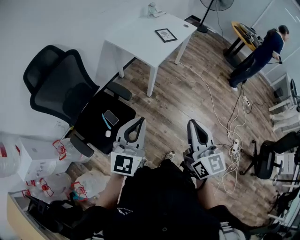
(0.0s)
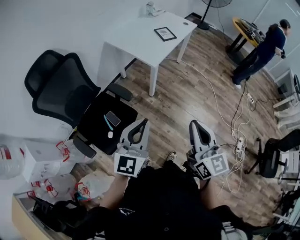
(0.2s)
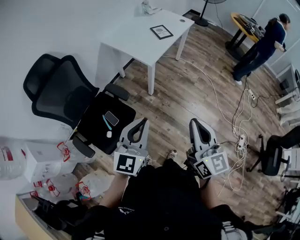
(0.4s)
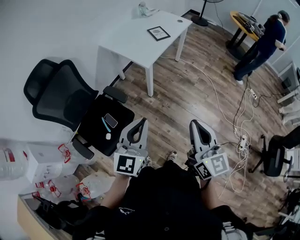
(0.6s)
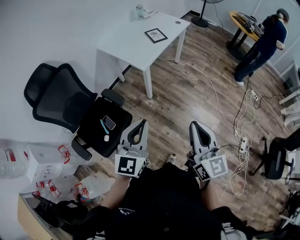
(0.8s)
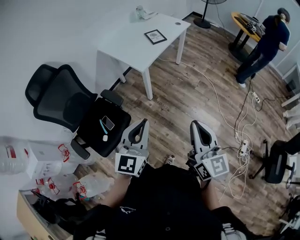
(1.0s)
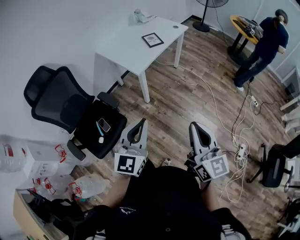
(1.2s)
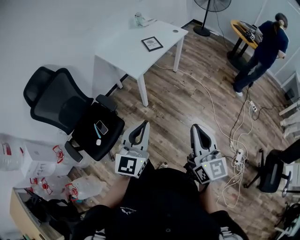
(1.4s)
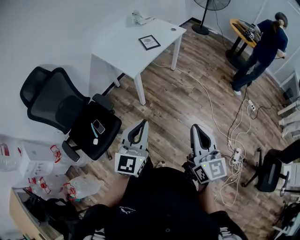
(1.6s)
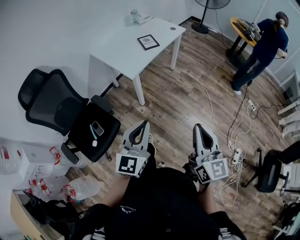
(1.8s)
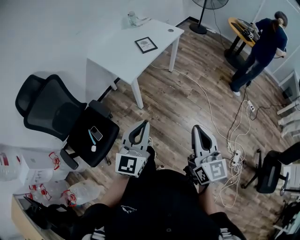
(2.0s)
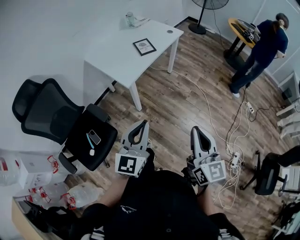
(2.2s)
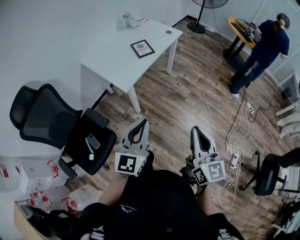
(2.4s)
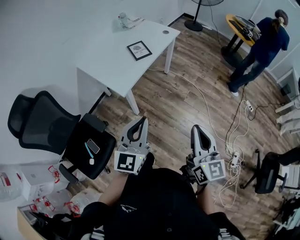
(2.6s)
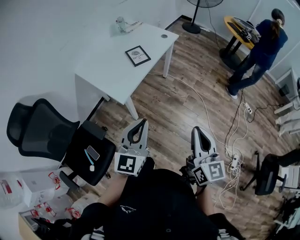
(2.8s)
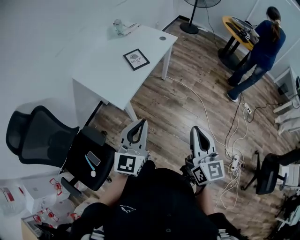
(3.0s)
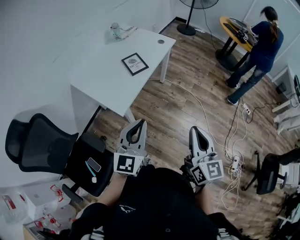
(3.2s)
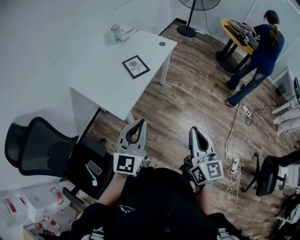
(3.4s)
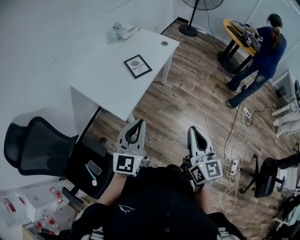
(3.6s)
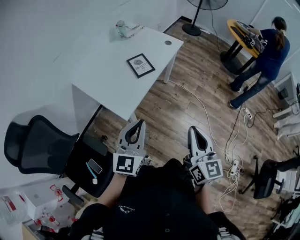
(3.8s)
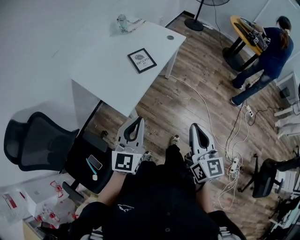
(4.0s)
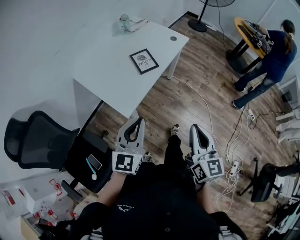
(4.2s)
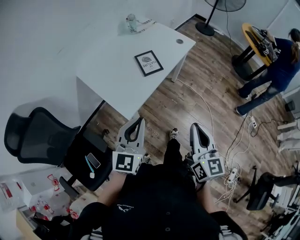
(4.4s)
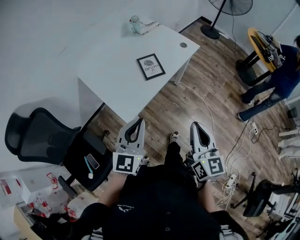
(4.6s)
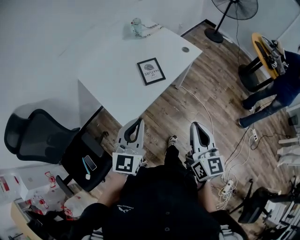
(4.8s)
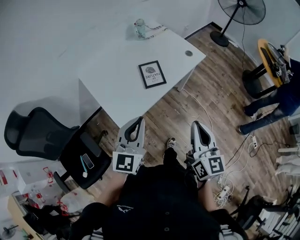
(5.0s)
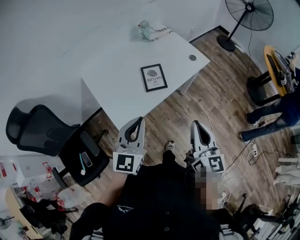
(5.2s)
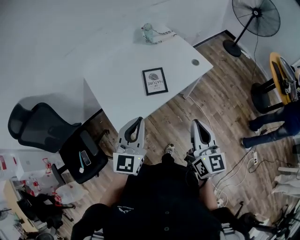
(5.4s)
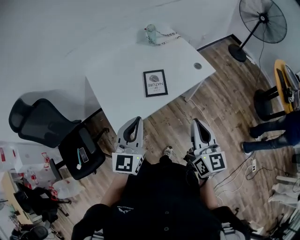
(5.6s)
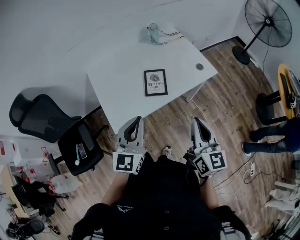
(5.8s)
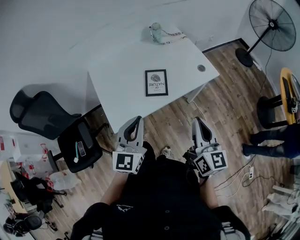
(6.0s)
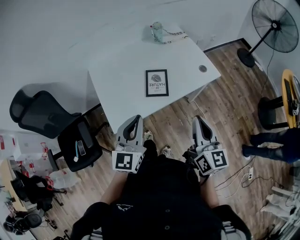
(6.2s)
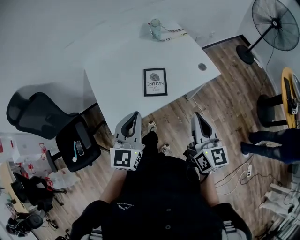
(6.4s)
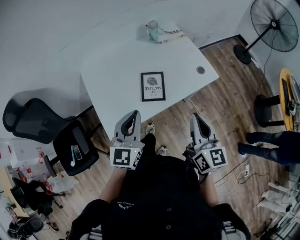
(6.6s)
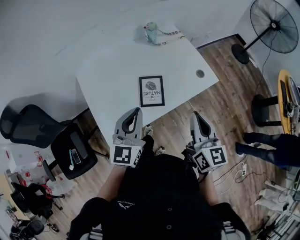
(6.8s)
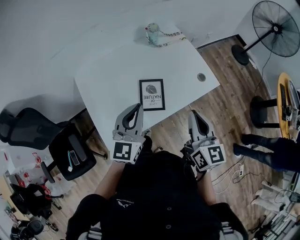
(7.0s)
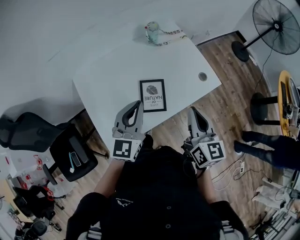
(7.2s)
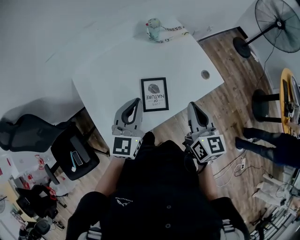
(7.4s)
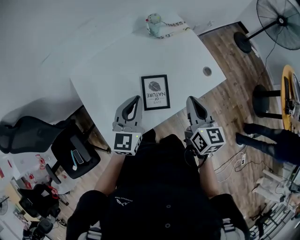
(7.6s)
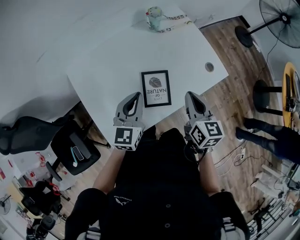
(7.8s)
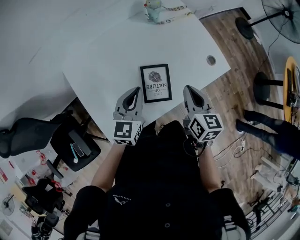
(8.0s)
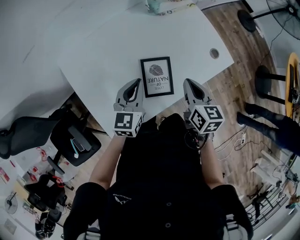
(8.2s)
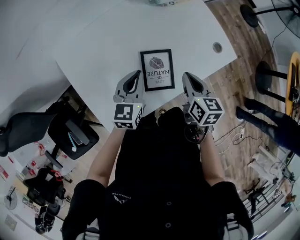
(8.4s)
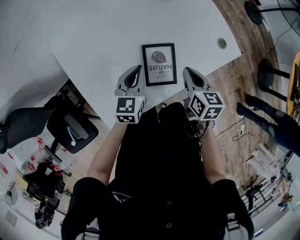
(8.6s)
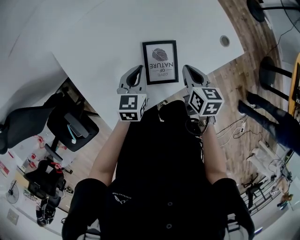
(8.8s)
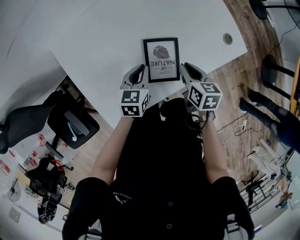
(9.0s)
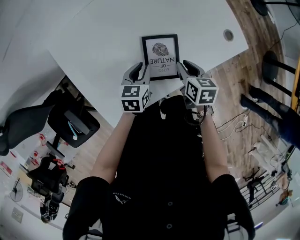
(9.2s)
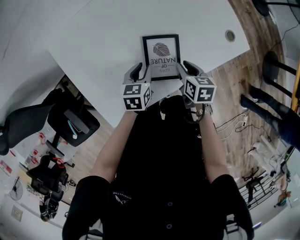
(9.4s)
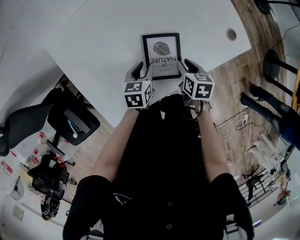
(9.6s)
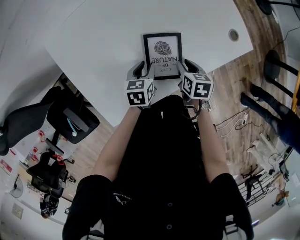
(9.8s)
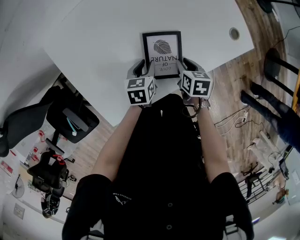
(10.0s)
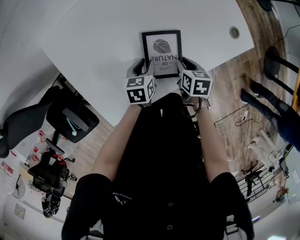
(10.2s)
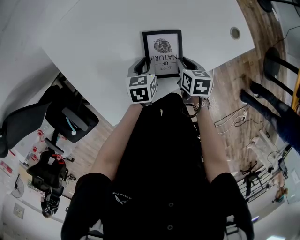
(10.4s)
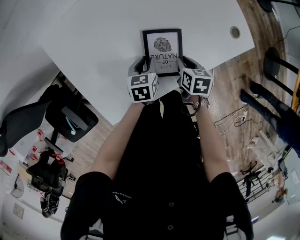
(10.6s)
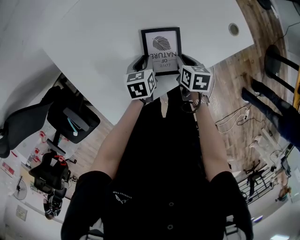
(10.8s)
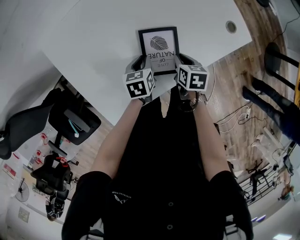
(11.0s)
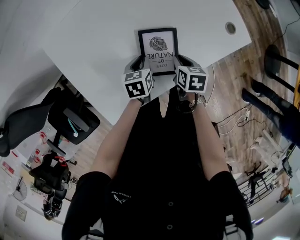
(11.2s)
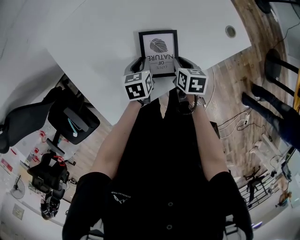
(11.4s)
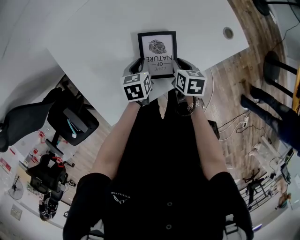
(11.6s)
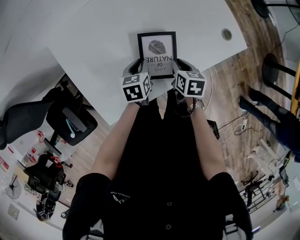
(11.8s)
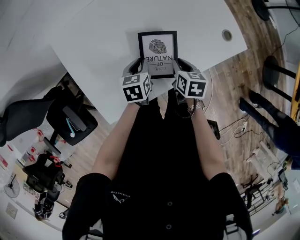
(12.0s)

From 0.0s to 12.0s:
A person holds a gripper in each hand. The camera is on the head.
From 0.0s to 1.6s: The grippers both shift to the right by roughly 25 cm.
From 1.6s to 3.0s: The grippers both shift forward by some 30 cm.
From 3.0s to 4.4s: The left gripper moves forward and to the left, approximately 15 cm; the right gripper goes roughly 15 cm forward.
From 4.4s to 6.0s: The grippers both shift forward and to the right by about 25 cm. The right gripper rotates some 20 degrees; the left gripper swivels about 30 degrees.
From 6.0s to 7.6s: Both grippers travel together forward, some 25 cm.
From 7.6s to 9.0s: The two grippers go about 25 cm downward. The left gripper rotates approximately 30 degrees. The right gripper rotates about 30 degrees.
From 9.0s to 10.4s: Both grippers travel together downward, roughly 10 cm. The left gripper opens.
From 10.4s to 12.0s: The grippers move only a little.

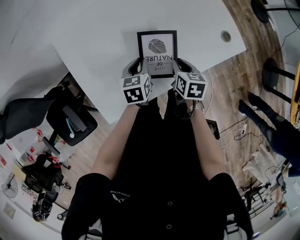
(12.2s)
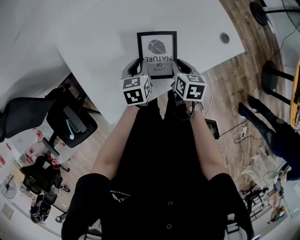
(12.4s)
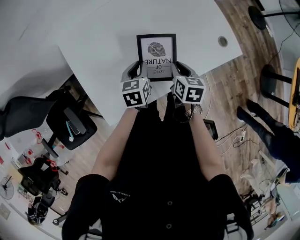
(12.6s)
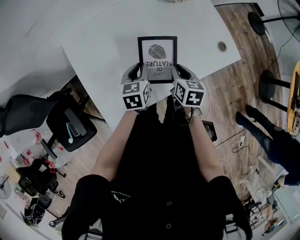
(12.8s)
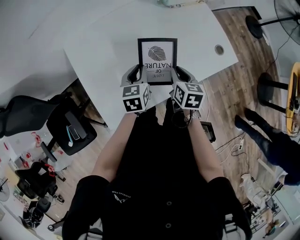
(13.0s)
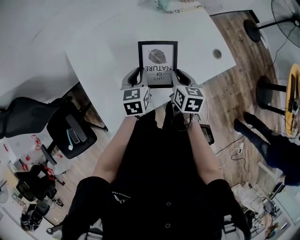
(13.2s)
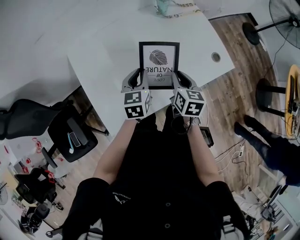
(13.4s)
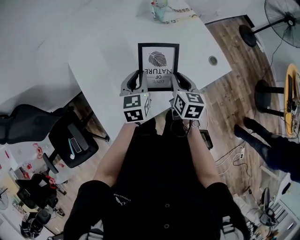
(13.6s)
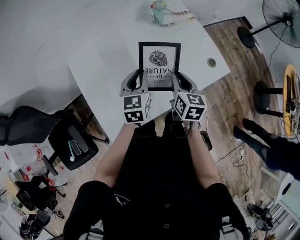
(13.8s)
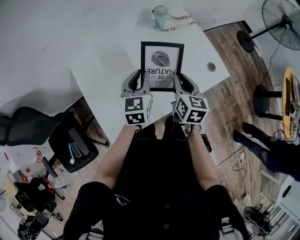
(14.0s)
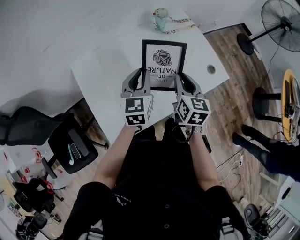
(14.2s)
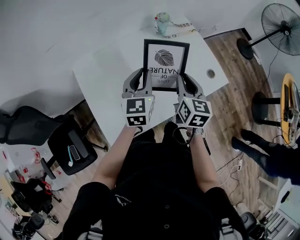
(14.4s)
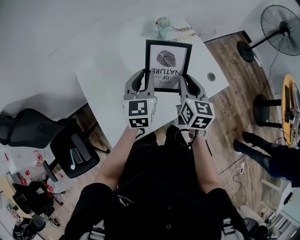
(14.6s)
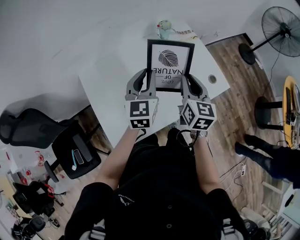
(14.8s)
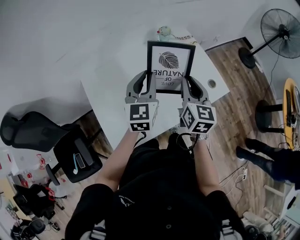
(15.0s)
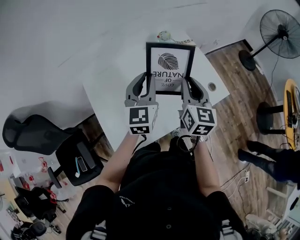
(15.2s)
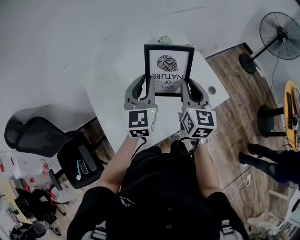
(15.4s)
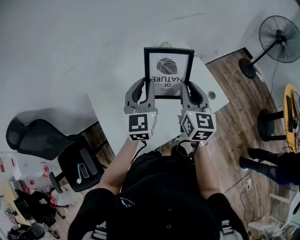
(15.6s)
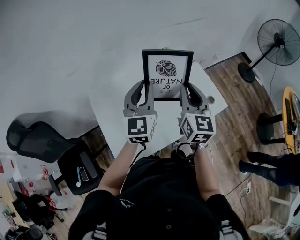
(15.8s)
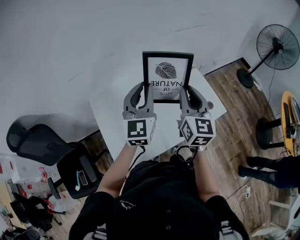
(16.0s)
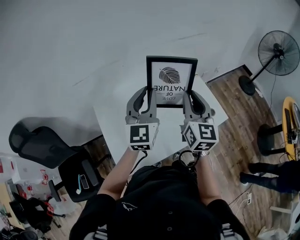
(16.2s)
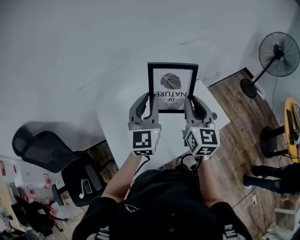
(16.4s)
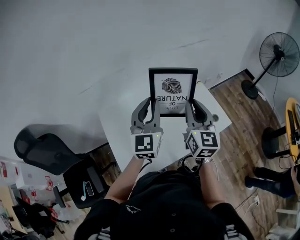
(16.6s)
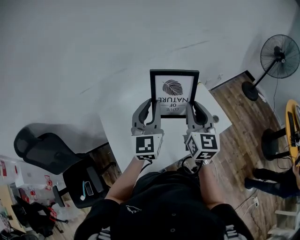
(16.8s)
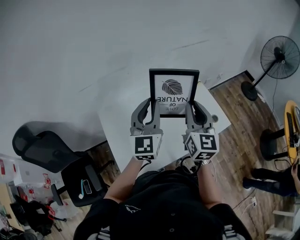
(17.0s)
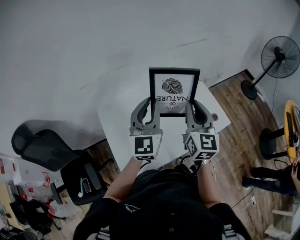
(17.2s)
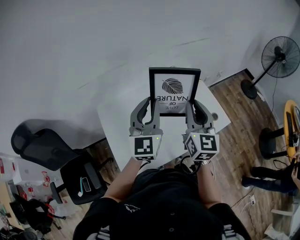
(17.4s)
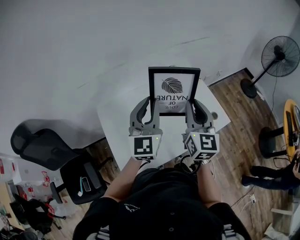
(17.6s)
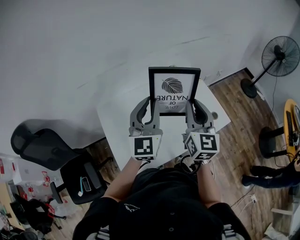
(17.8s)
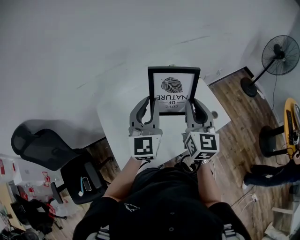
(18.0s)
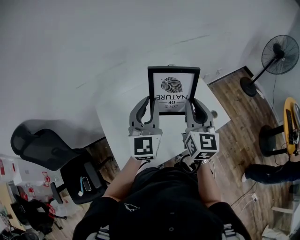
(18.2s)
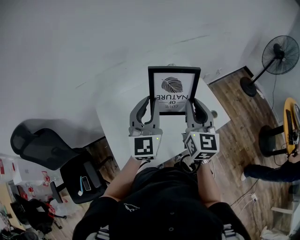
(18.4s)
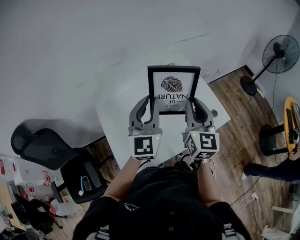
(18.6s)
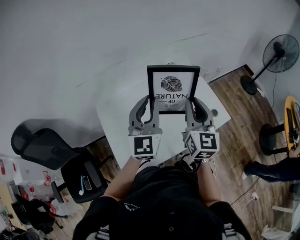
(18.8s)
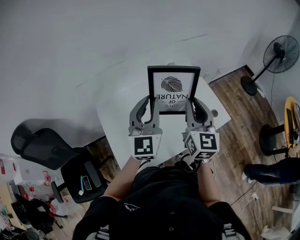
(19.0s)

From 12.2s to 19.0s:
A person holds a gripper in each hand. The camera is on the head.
From 12.2s to 13.6s: Both grippers travel together upward, about 15 cm. The left gripper swivels approximately 20 degrees.
From 13.6s to 15.0s: Both grippers move upward, about 15 cm. The right gripper turns by approximately 20 degrees; the left gripper turns by roughly 20 degrees.
From 15.0s to 16.2s: Both grippers travel together upward, roughly 10 cm.
From 16.2s to 17.6s: The grippers move only a little.
From 17.6s to 19.0s: Both grippers stay about where they are.

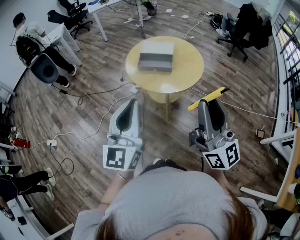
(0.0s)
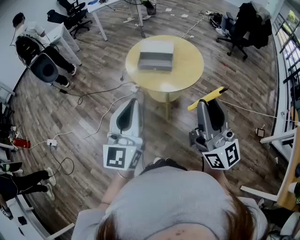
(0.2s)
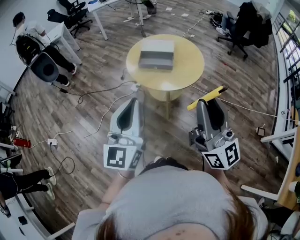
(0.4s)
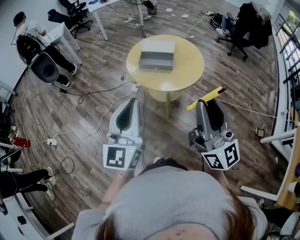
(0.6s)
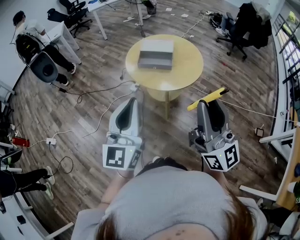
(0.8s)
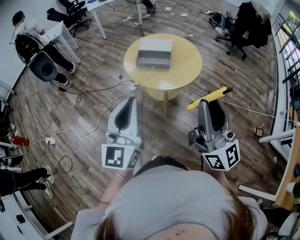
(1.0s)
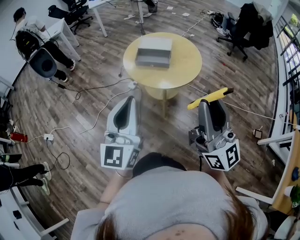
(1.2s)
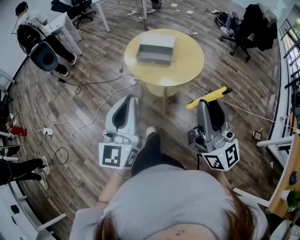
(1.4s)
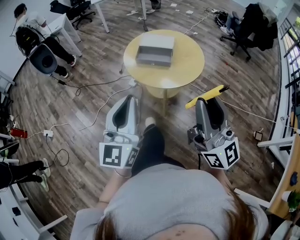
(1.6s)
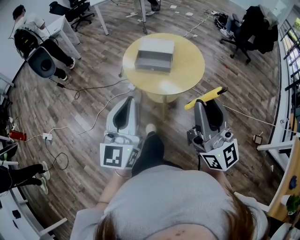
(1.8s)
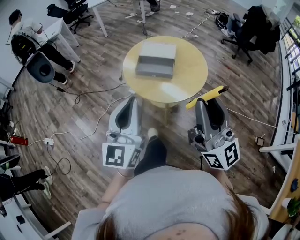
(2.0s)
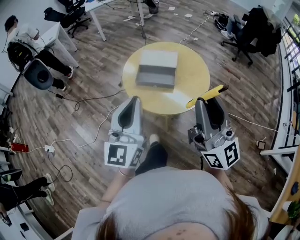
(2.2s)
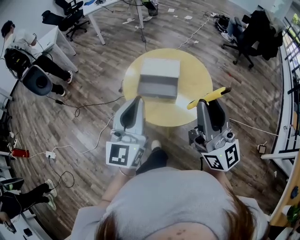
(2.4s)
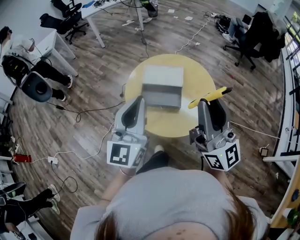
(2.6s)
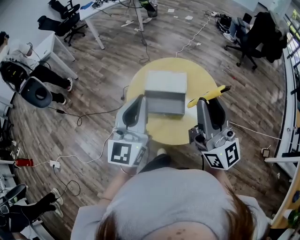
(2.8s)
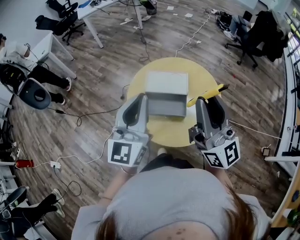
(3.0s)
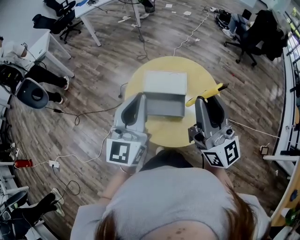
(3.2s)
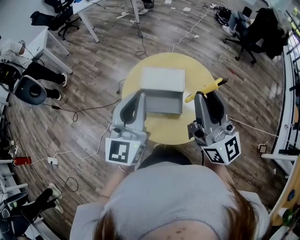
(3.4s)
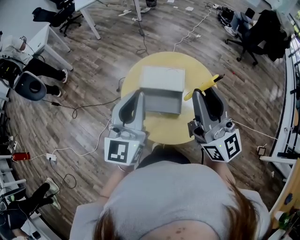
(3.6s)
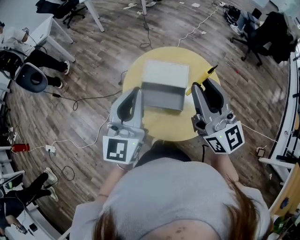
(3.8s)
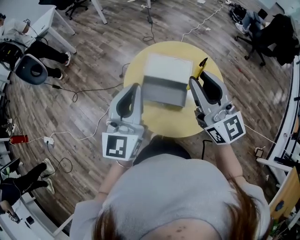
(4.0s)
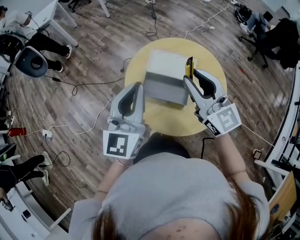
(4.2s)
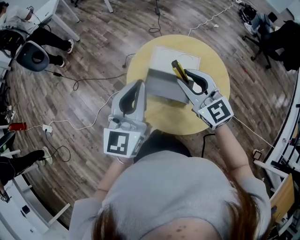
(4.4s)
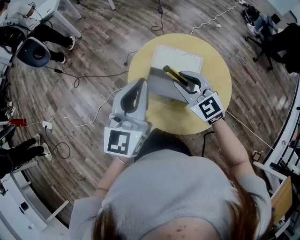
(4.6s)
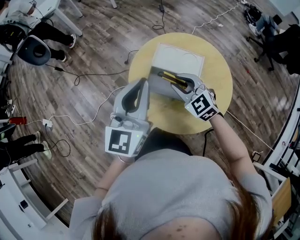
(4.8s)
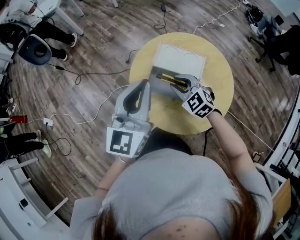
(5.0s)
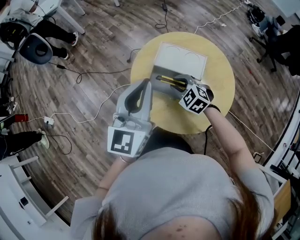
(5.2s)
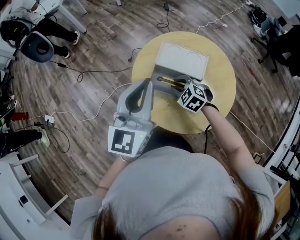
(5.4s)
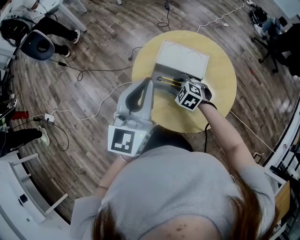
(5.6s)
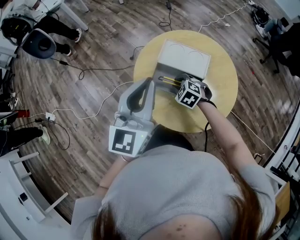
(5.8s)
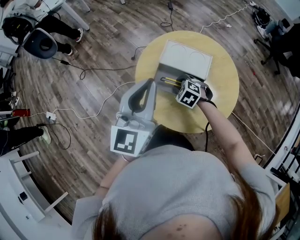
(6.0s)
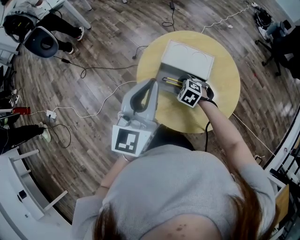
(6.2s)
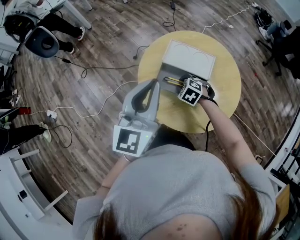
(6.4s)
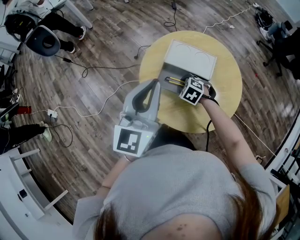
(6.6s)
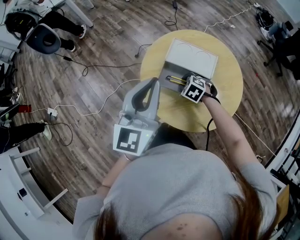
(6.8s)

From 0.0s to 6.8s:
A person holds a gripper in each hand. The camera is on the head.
From 0.0s to 1.4s: The grippers move only a little.
From 1.4s to 2.8s: The grippers both shift forward by about 35 cm.
From 2.8s to 4.0s: The right gripper goes approximately 10 cm forward and downward, and changes its angle by approximately 20 degrees.
From 4.0s to 5.4s: The right gripper shifts approximately 30 cm downward, and tips its fingers downward by roughly 60 degrees.
From 5.4s to 6.8s: The right gripper shifts approximately 5 cm downward.
